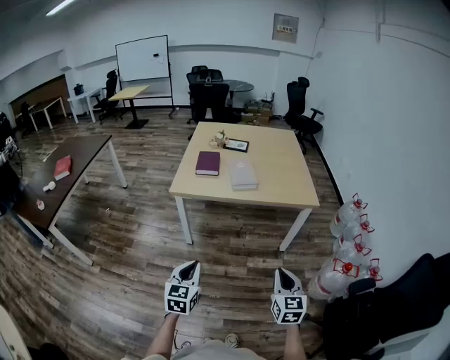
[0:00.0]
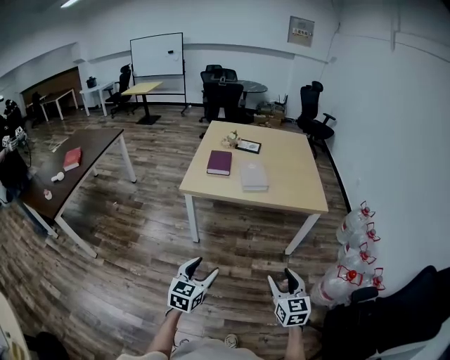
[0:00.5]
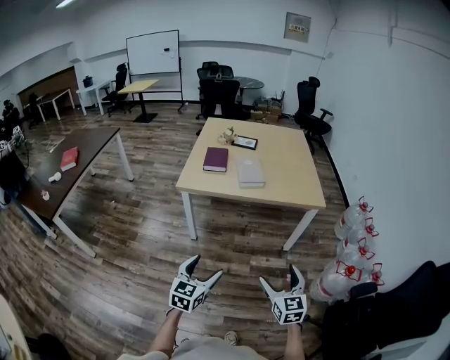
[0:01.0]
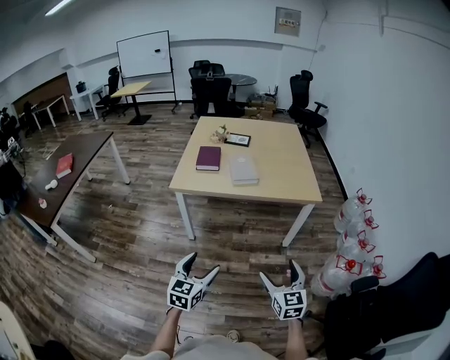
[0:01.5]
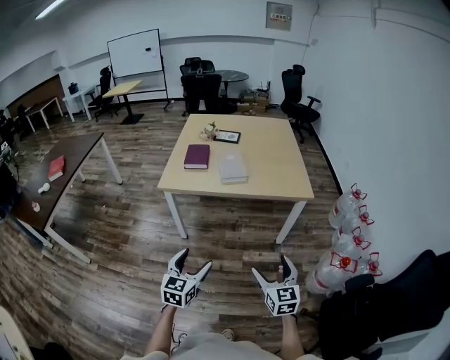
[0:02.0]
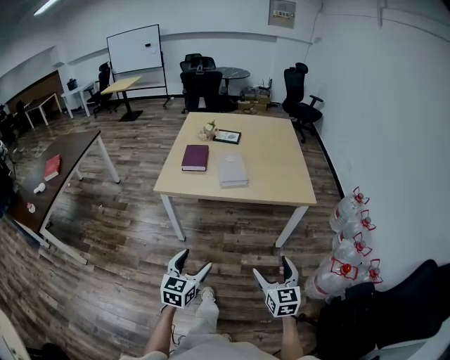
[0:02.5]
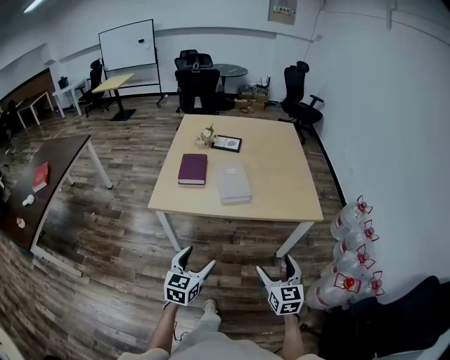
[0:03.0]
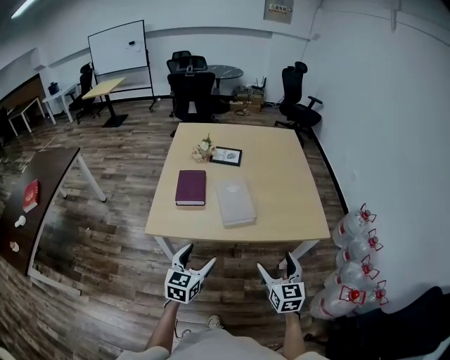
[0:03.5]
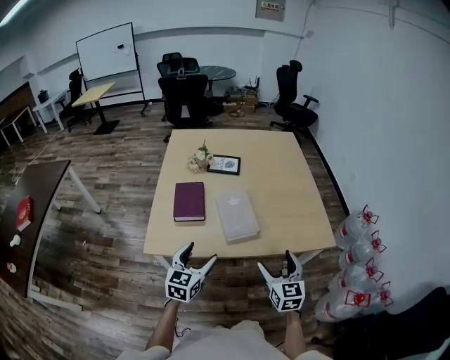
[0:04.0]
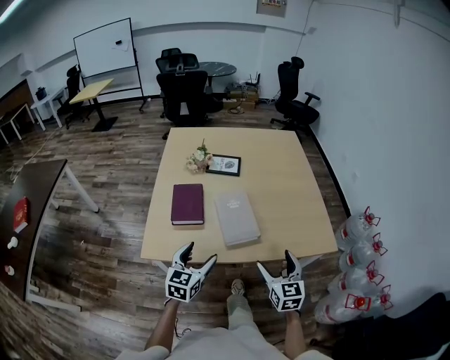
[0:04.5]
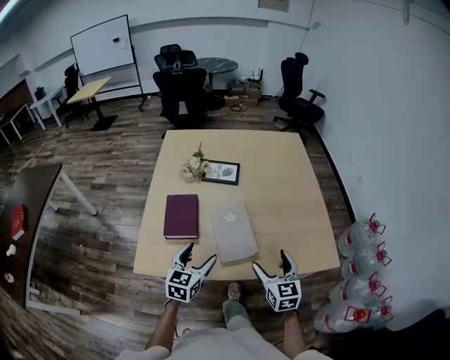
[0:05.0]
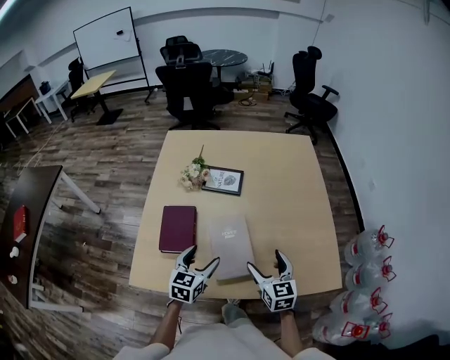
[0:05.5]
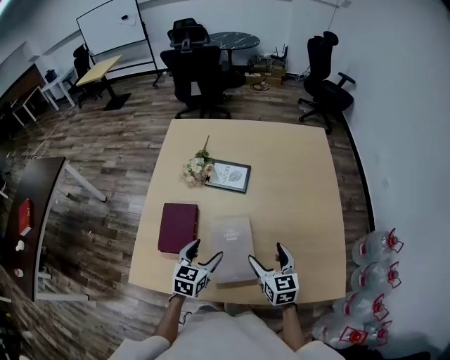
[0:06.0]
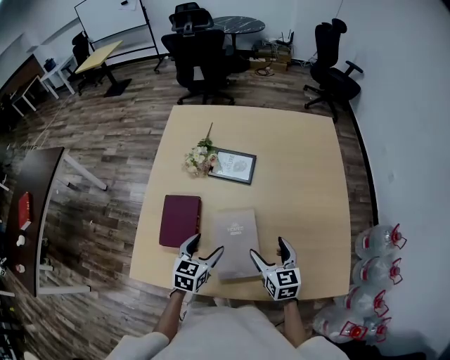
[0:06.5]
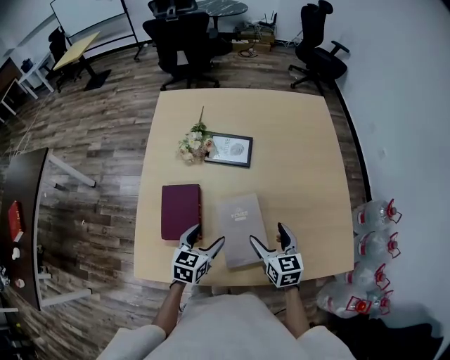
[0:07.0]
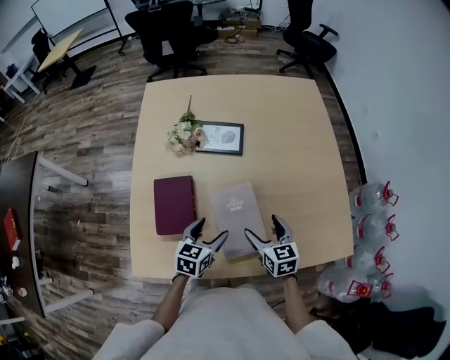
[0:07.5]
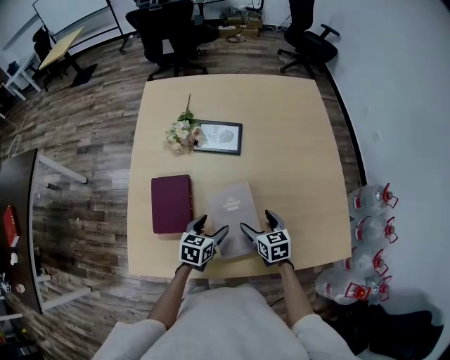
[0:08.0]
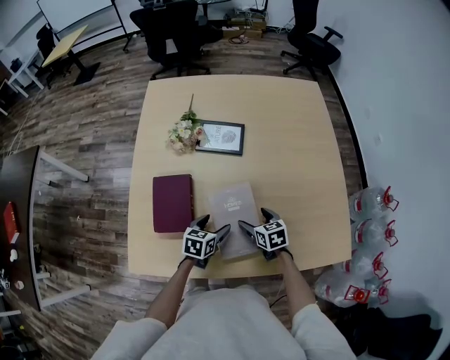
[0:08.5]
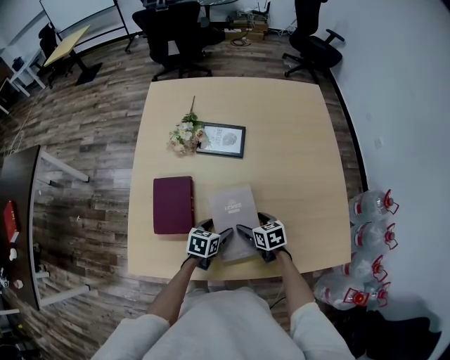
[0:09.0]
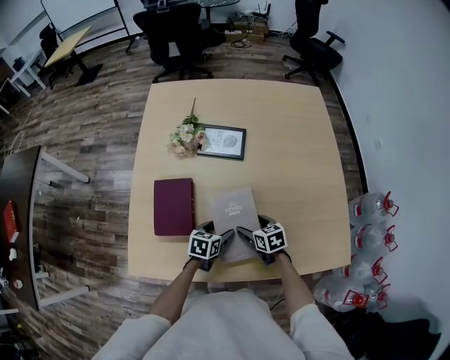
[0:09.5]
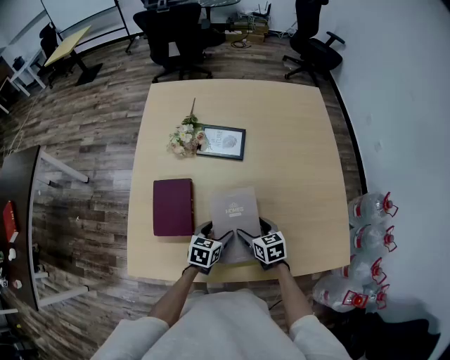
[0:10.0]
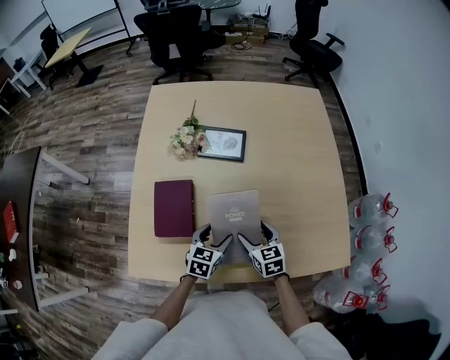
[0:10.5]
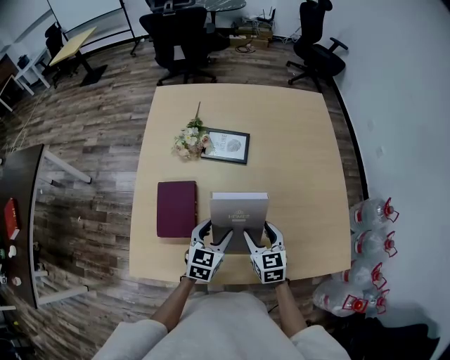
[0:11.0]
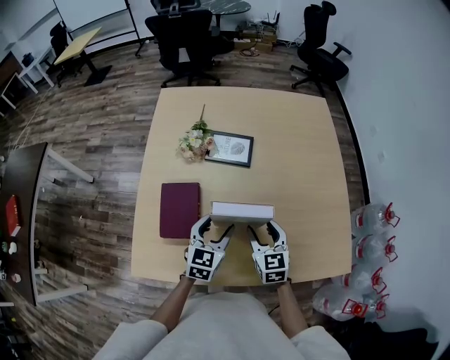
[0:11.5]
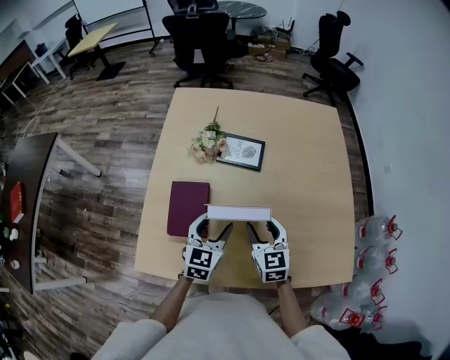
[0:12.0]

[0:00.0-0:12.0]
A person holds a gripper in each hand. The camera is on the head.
0:00.0 to 0:02.0: The right gripper opens, while the left gripper moves to the right, some 5 cm, and opens its fingers.
0:02.0 to 0:04.0: The pair of grippers is taken forward, roughly 40 cm.
0:04.0 to 0:06.0: The two grippers go approximately 25 cm forward.
0:06.0 to 0:08.0: Both grippers move downward, about 10 cm.
0:08.0 to 0:10.0: The grippers make only small movements.
0:10.0 to 0:12.0: Both grippers move upward, roughly 15 cm. The left gripper swivels about 30 degrees; the right gripper swivels about 30 degrees.

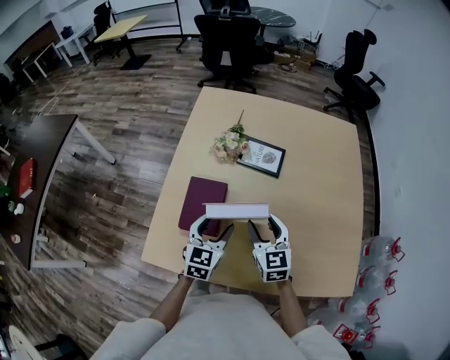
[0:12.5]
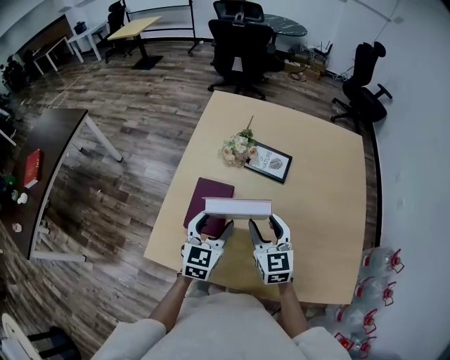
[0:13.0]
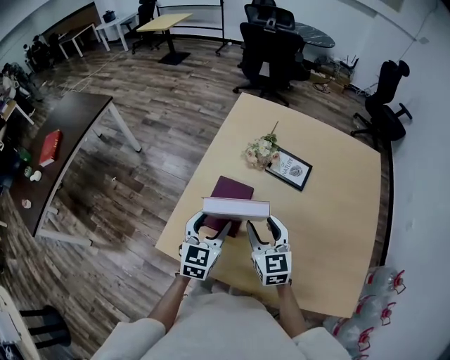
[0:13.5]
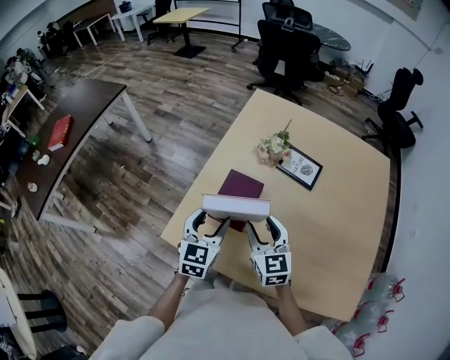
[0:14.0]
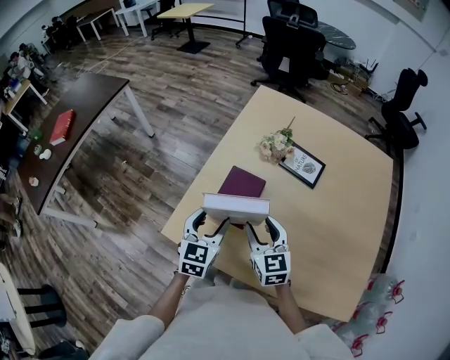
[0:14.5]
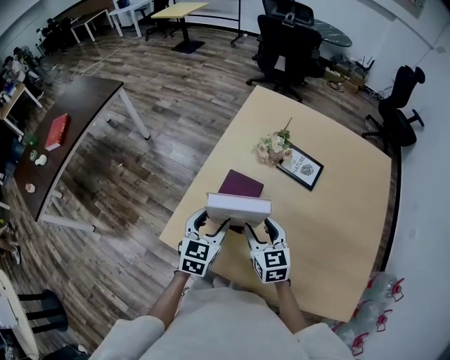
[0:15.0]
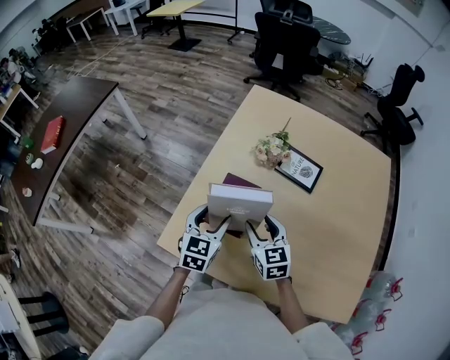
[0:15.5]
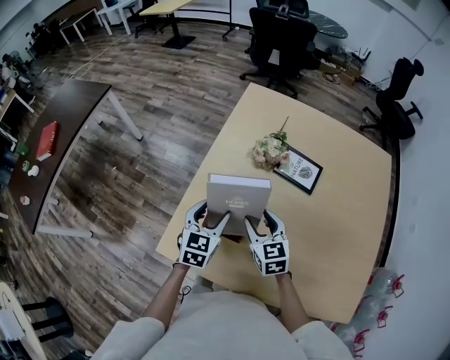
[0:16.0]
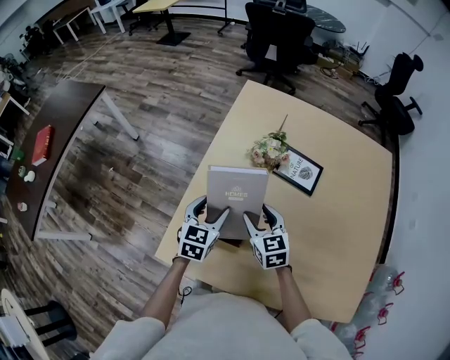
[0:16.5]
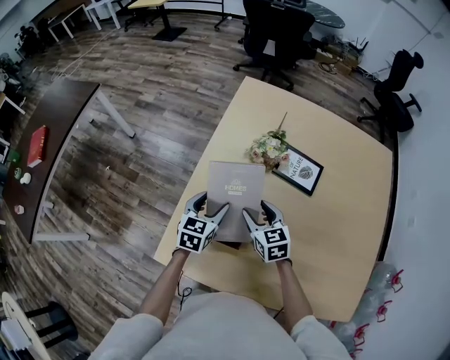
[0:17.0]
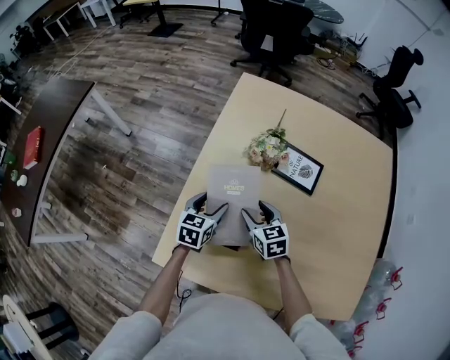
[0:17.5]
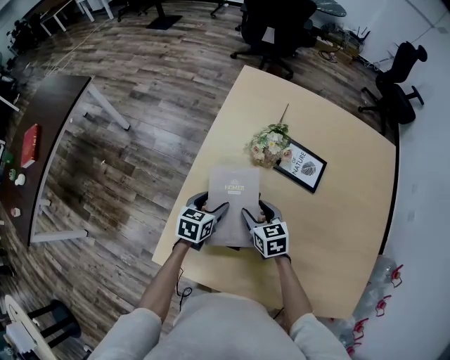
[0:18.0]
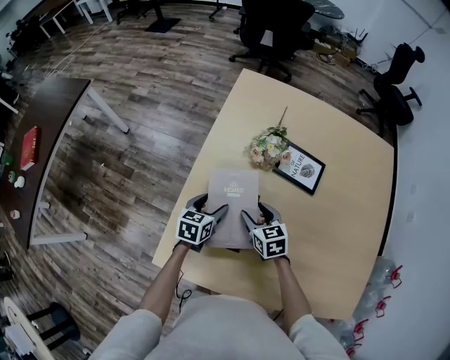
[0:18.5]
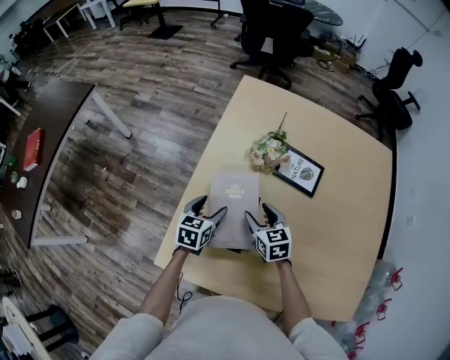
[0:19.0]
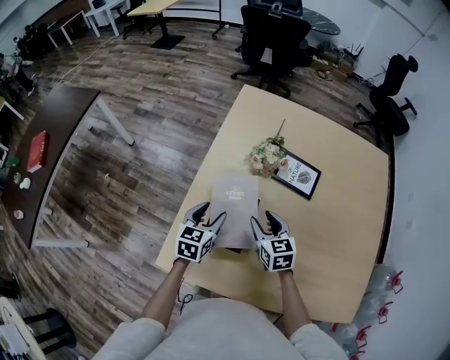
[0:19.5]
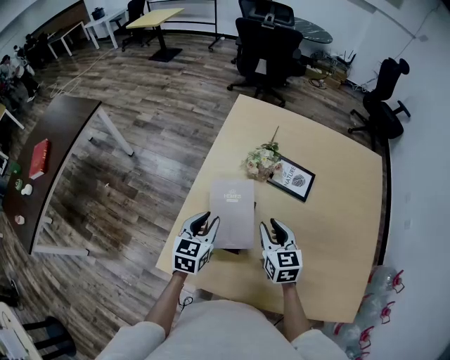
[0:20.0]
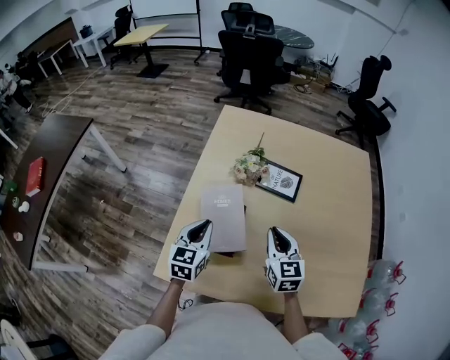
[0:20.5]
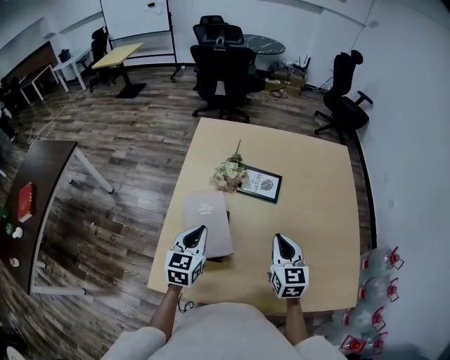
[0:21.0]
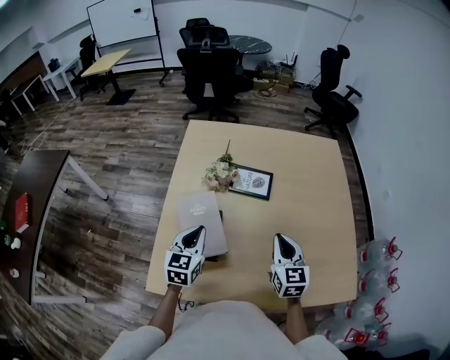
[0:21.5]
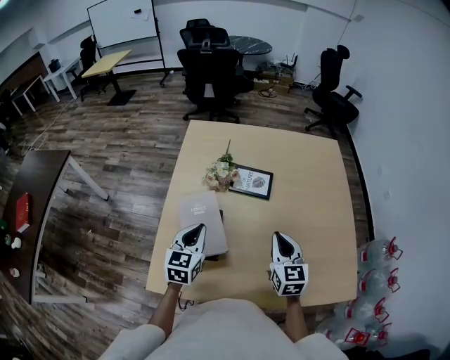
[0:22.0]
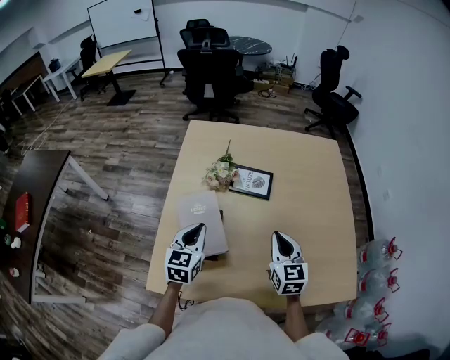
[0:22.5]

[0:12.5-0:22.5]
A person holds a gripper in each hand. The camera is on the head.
0:12.5 to 0:14.5: The grippers both shift to the left by some 10 cm.
0:14.5 to 0:16.5: The grippers both shift forward and downward by some 15 cm.
0:16.5 to 0:18.5: The two grippers go some 10 cm downward. The left gripper changes its angle by about 20 degrees.
0:18.5 to 0:20.5: The right gripper goes about 20 cm upward, to the right and backward, rotates roughly 30 degrees, and closes its fingers. The left gripper goes roughly 15 cm upward and backward, swivels approximately 20 degrees, and closes.
0:20.5 to 0:22.5: The left gripper travels to the right by approximately 5 cm; the right gripper heads to the right, covering some 10 cm.

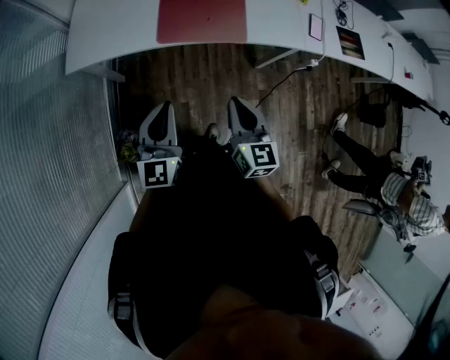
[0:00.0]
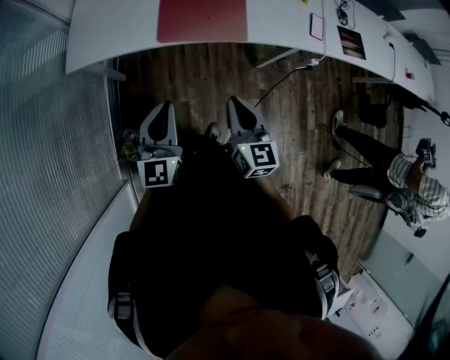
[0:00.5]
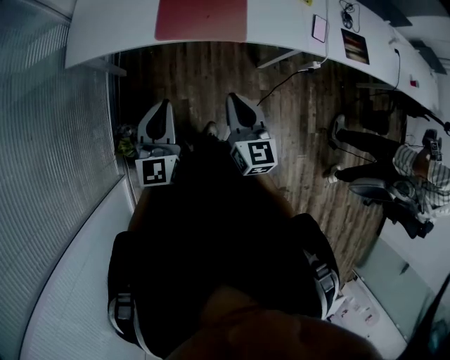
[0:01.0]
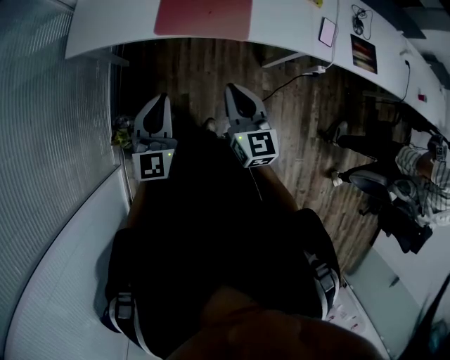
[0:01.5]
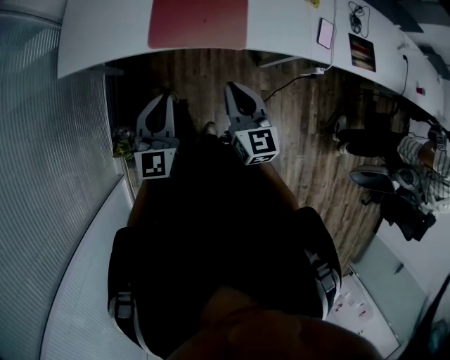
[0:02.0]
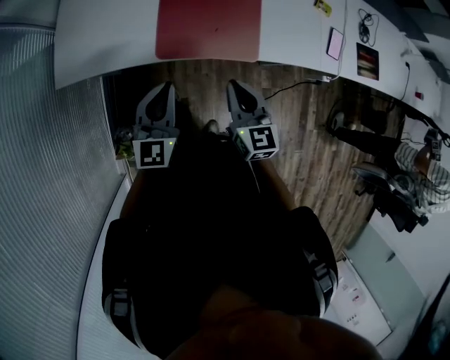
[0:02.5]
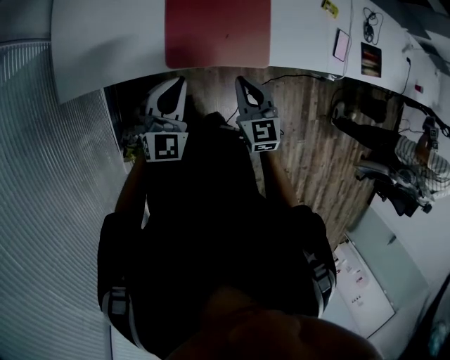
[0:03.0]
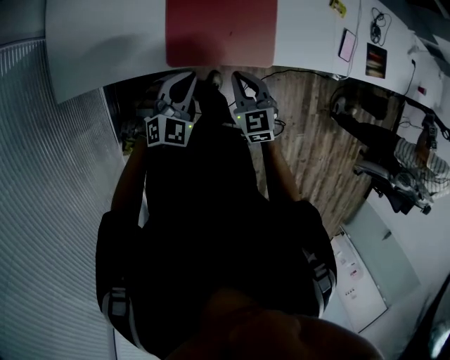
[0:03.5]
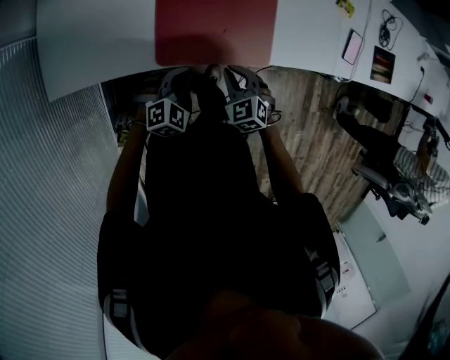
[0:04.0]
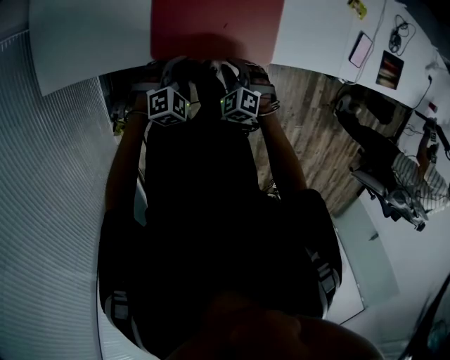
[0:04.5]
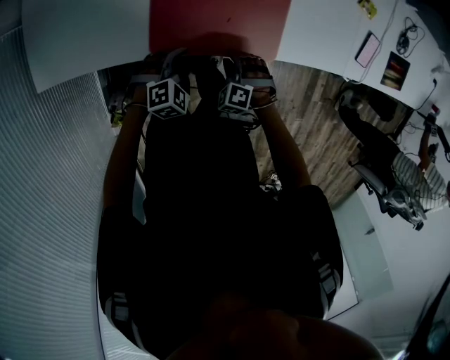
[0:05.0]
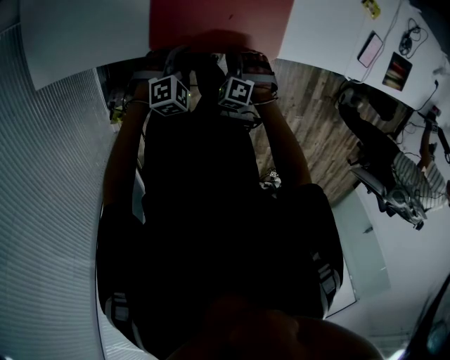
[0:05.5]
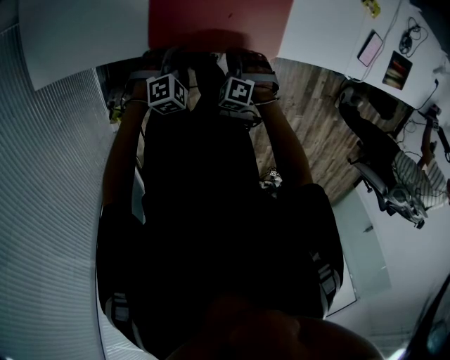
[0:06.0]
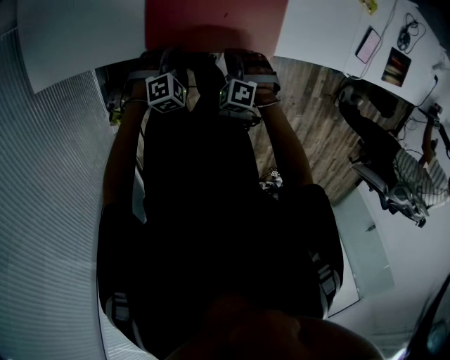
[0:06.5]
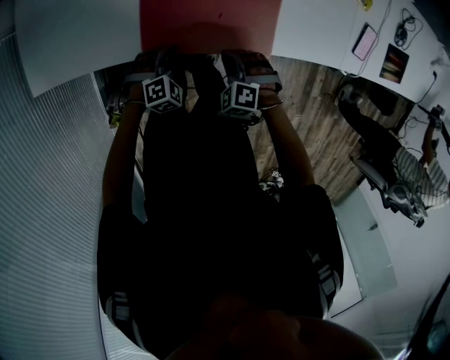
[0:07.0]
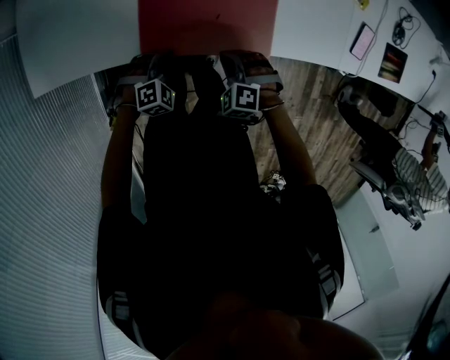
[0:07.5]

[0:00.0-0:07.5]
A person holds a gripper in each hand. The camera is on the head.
0:00.0 to 0:02.0: The left gripper travels forward and to the right by approximately 10 cm, while the right gripper moves forward, some 10 cm.
0:02.0 to 0:04.0: Both grippers travel together downward and forward, roughly 30 cm. The left gripper tilts its fingers about 40 degrees downward. Meanwhile the right gripper points its fingers some 40 degrees further downward.
0:04.0 to 0:05.5: Both grippers move downward, some 10 cm. The left gripper opens; the right gripper turns by about 40 degrees, and opens up.
0:05.5 to 0:07.5: The right gripper shifts about 5 cm upward, and closes its fingers; the left gripper closes.
